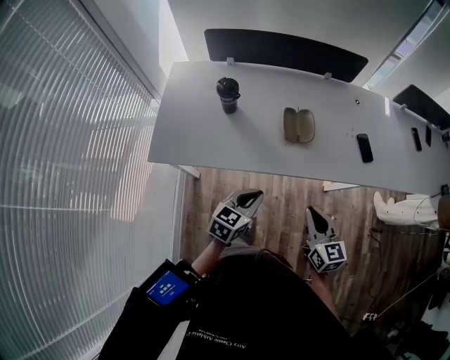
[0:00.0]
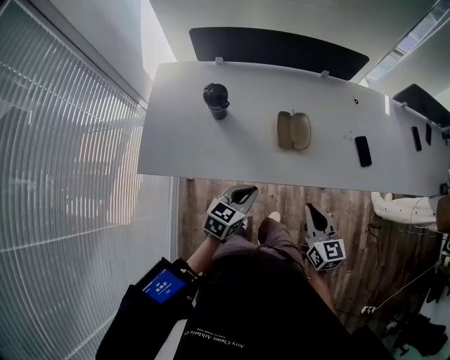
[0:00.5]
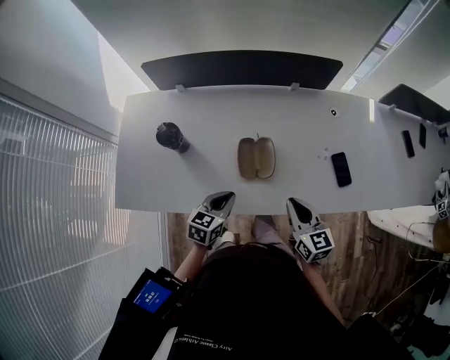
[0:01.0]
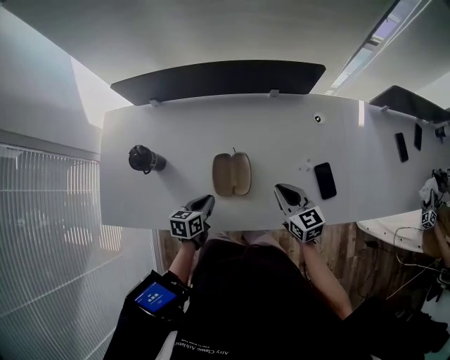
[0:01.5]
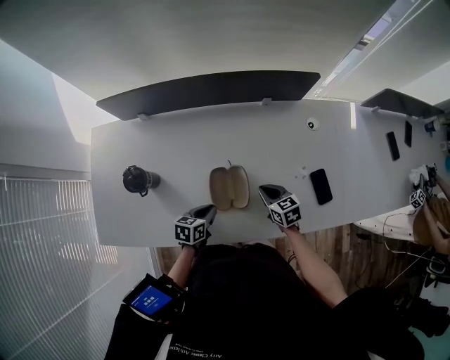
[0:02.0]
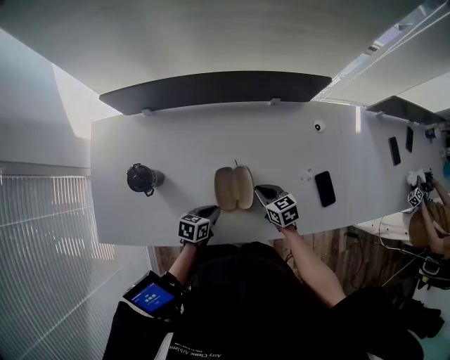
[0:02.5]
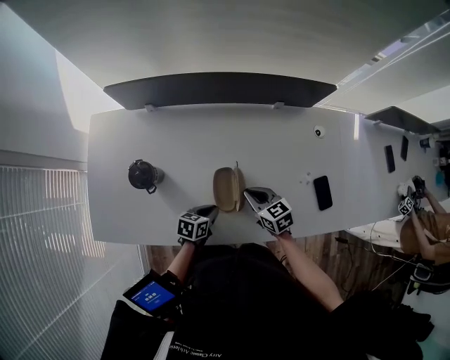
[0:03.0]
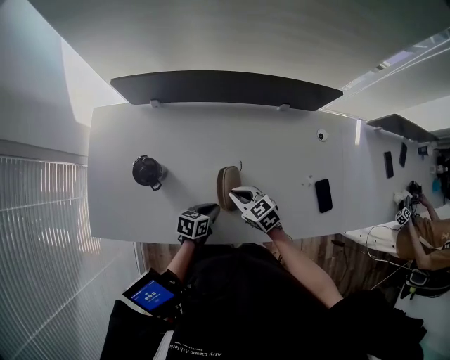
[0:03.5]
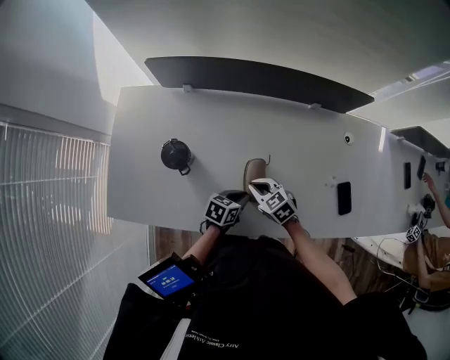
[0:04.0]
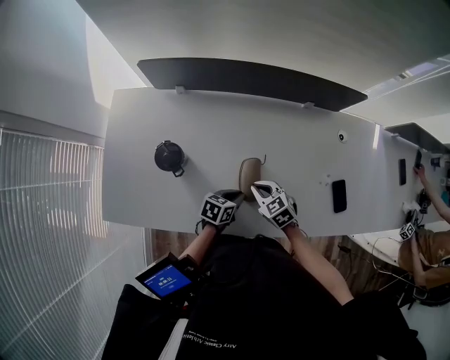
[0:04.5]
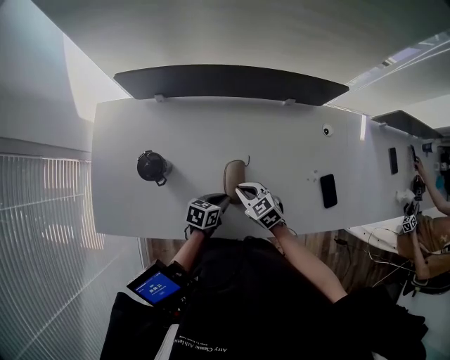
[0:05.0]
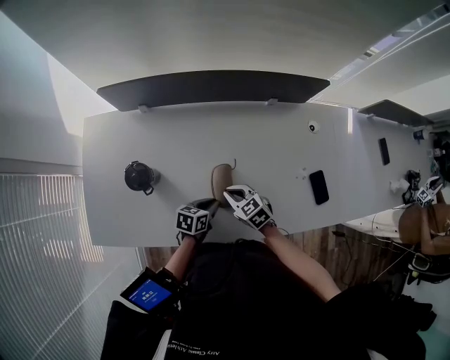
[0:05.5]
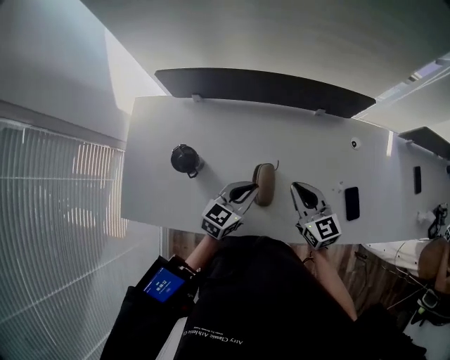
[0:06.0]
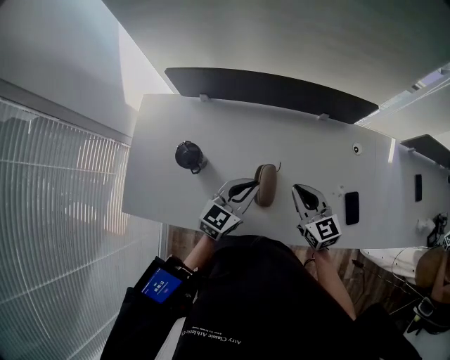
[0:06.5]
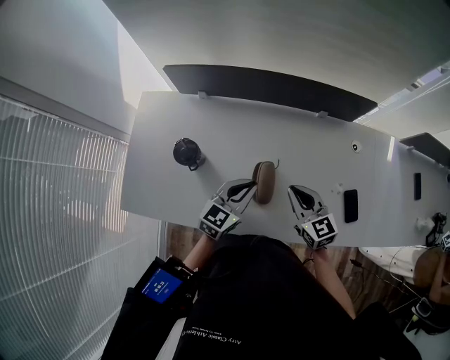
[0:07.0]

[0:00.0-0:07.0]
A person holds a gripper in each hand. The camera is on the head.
0:00.0 to 0:02.0: Both grippers move forward and downward, about 35 cm. The left gripper swivels about 30 degrees. Meanwhile the right gripper changes its angle by roughly 30 degrees.
0:02.0 to 0:03.5: The right gripper goes some 15 cm to the left, and swivels about 20 degrees.
0:03.5 to 0:05.0: There are only small adjustments of the grippers.
0:05.0 to 0:07.0: The right gripper shifts roughly 15 cm upward and to the right, and changes its angle by some 30 degrees; the left gripper goes about 20 cm upward, and changes its angle by about 40 degrees.

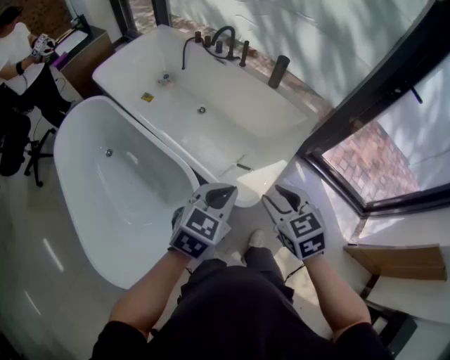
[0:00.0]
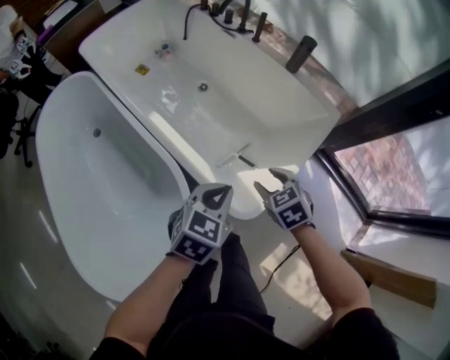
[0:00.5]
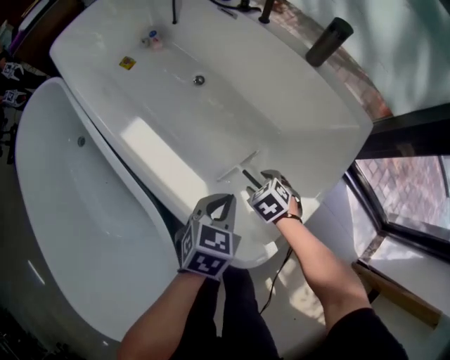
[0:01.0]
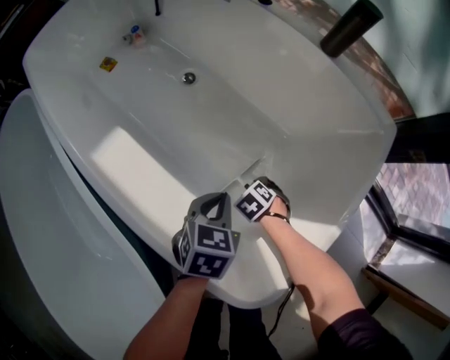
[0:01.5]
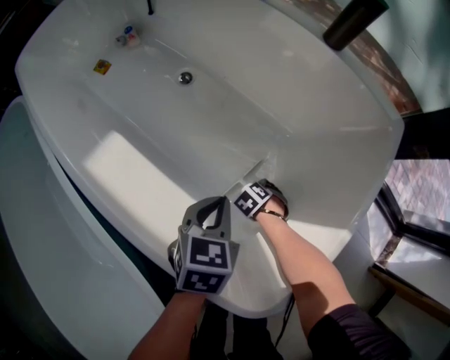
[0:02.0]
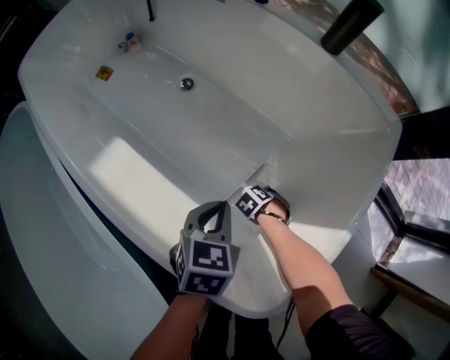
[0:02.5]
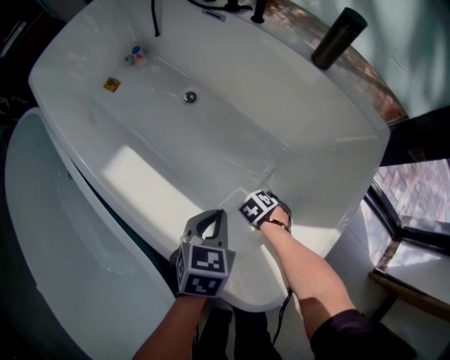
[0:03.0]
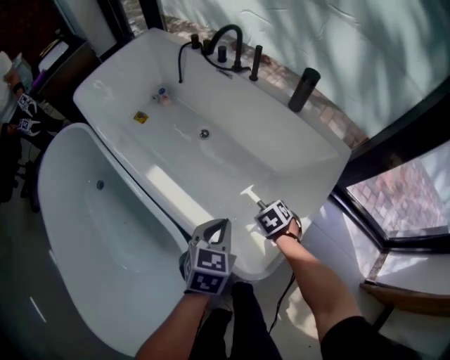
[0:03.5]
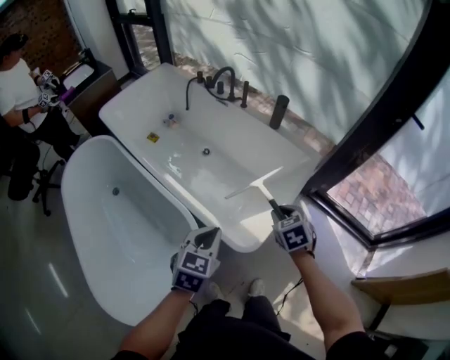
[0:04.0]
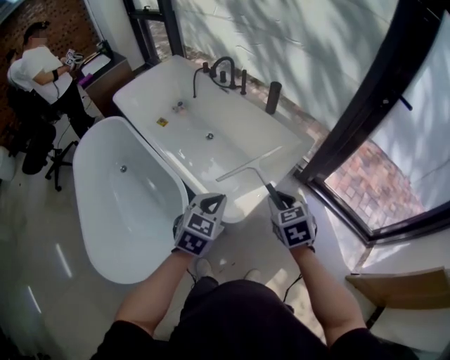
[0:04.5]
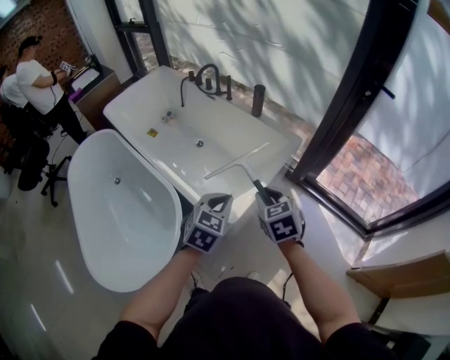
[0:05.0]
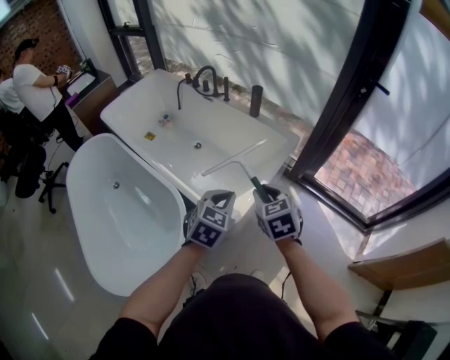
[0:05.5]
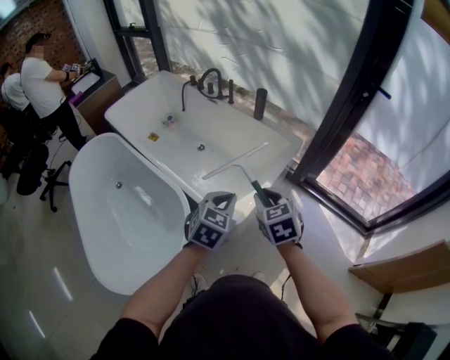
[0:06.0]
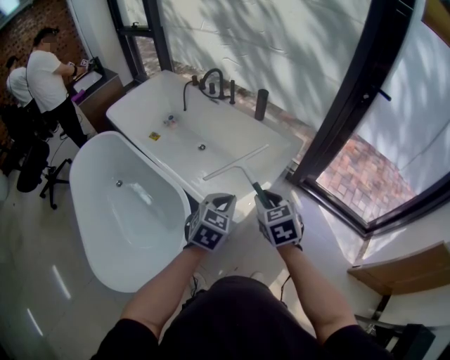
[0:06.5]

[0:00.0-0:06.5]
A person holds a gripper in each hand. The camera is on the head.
0:00.0 to 0:02.0: The right gripper is displaced downward by approximately 70 cm, and points its fingers about 40 degrees further downward, while the left gripper travels downward by roughly 40 cm, and swivels about 30 degrees.
0:02.0 to 0:04.5: The right gripper travels upward by some 70 cm, points its fingers approximately 40 degrees further upward, and closes. Meanwhile the left gripper is displaced upward by roughly 40 cm, and rotates some 30 degrees.
0:04.5 to 0:06.5: The right gripper moves about 5 cm.

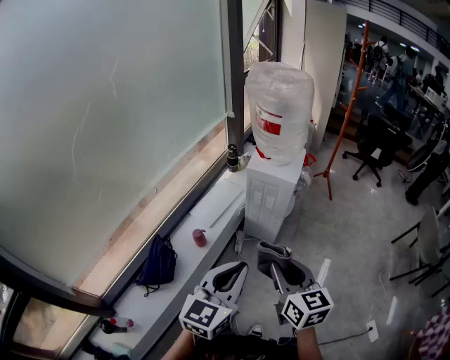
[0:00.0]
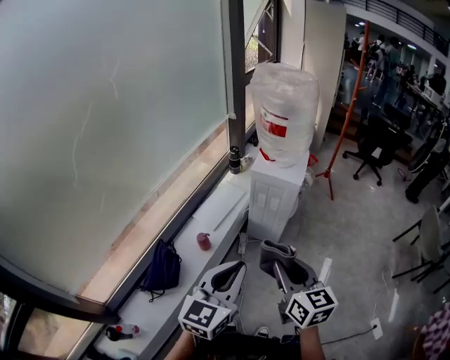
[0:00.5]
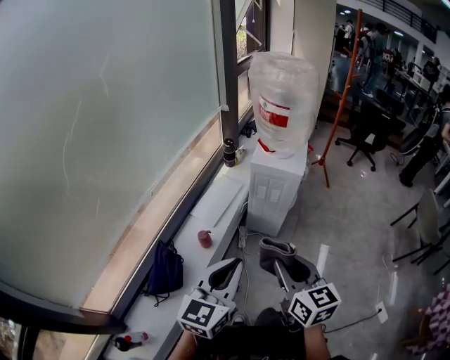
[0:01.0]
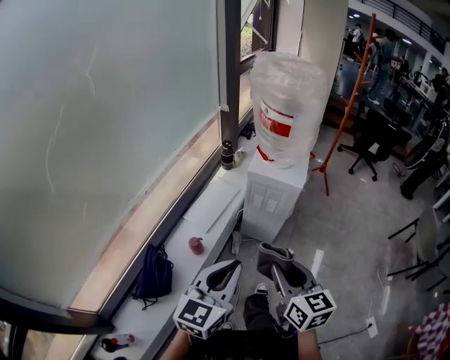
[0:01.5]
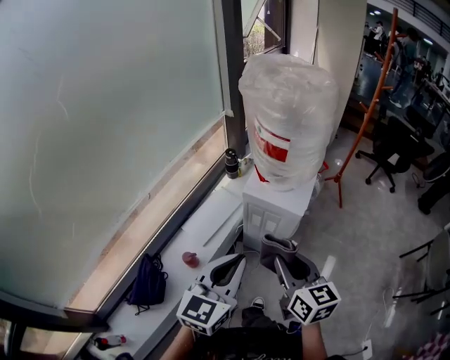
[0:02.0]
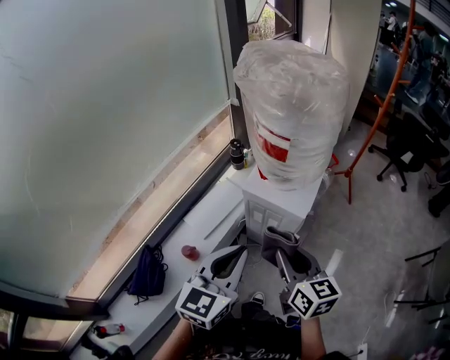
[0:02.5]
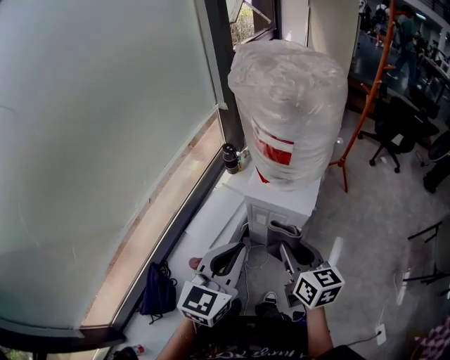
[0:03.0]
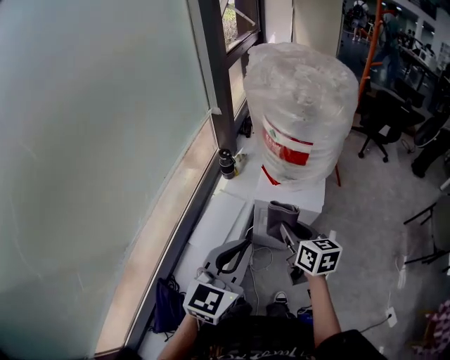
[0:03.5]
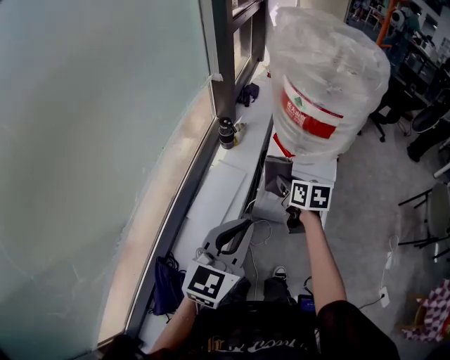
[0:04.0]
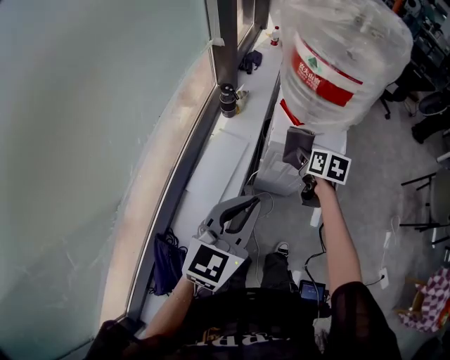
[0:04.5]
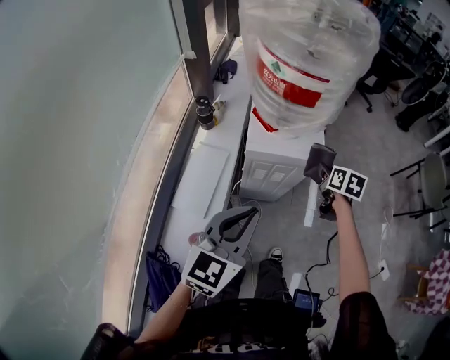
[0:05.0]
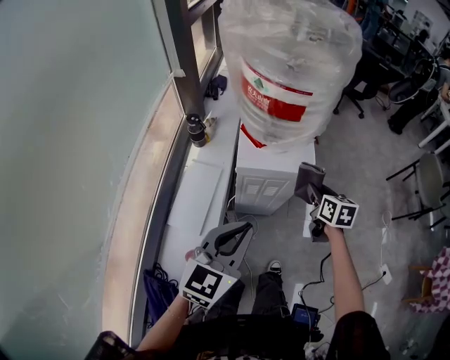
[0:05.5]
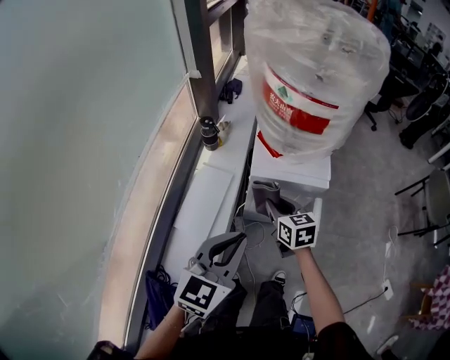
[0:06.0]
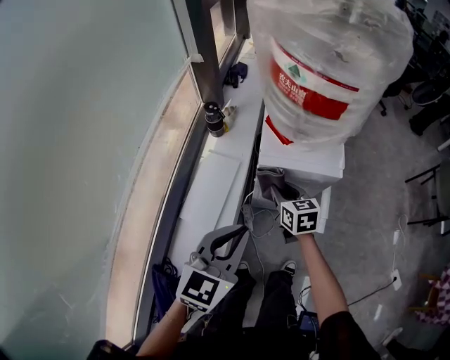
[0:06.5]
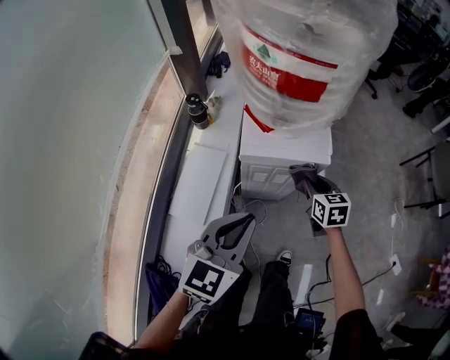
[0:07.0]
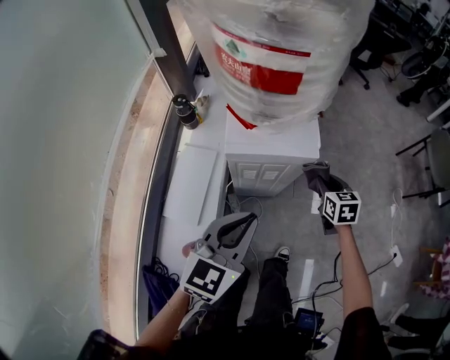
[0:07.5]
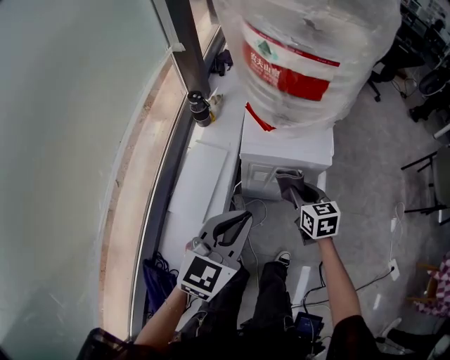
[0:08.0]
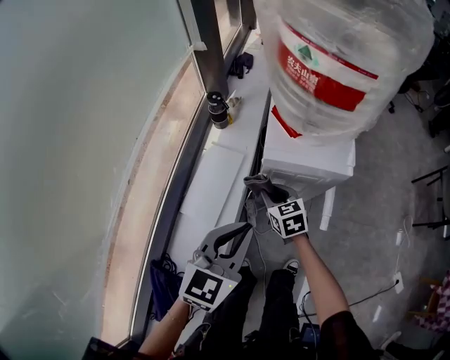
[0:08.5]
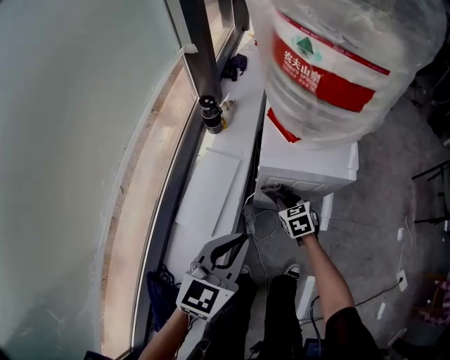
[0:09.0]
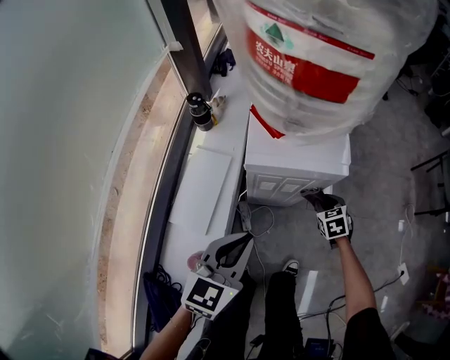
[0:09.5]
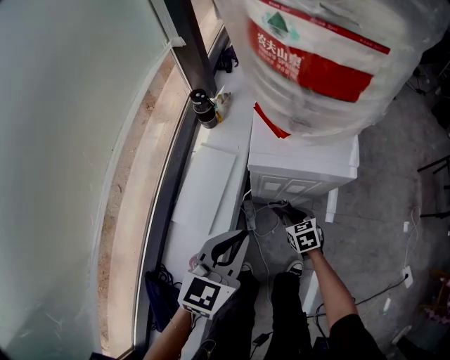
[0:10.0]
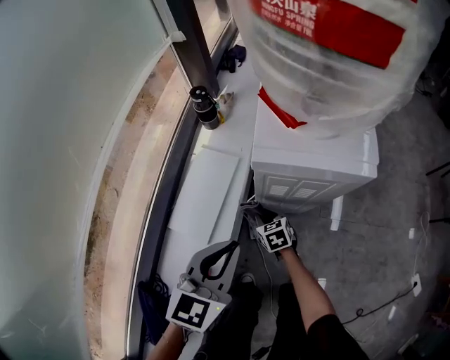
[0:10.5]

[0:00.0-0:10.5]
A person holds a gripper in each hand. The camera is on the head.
0:00.0 to 0:02.0: The two grippers go roughly 25 cm forward.
0:02.0 to 0:04.0: The left gripper heads to the left and forward, covering roughly 20 cm; the right gripper travels forward, downward and to the left by some 30 cm, and changes its angle by about 30 degrees.
0:04.0 to 0:06.5: The grippers both shift downward by about 10 cm. The right gripper goes to the right and returns, some 20 cm each way.
0:06.5 to 0:08.5: The left gripper travels to the right and back again, approximately 10 cm each way; the right gripper moves downward, some 5 cm, and travels to the right and back again, roughly 25 cm each way.
0:08.5 to 0:10.5: The left gripper moves downward, about 10 cm. Meanwhile the right gripper moves downward, about 25 cm, and reaches some 25 cm to the right, then returns.

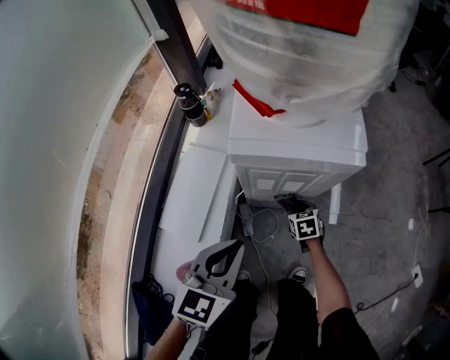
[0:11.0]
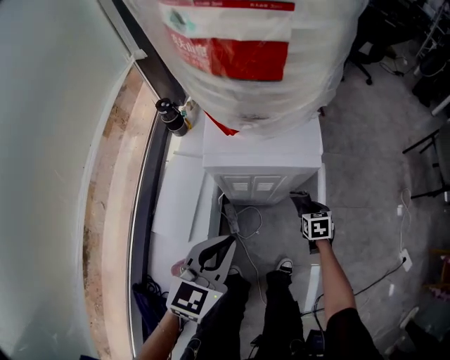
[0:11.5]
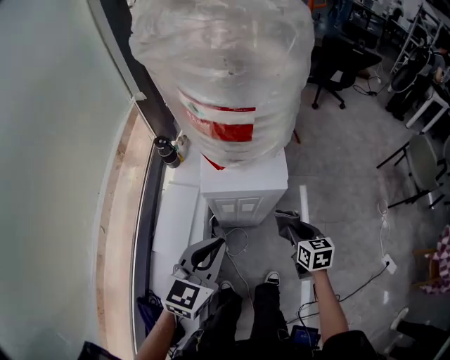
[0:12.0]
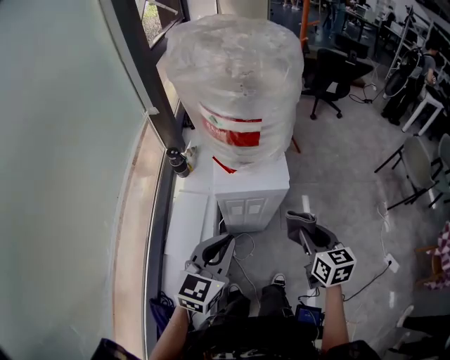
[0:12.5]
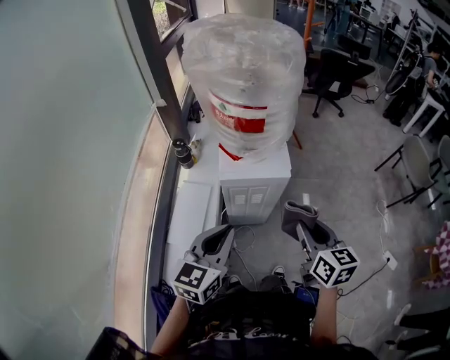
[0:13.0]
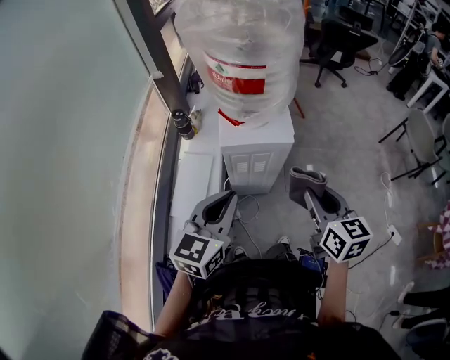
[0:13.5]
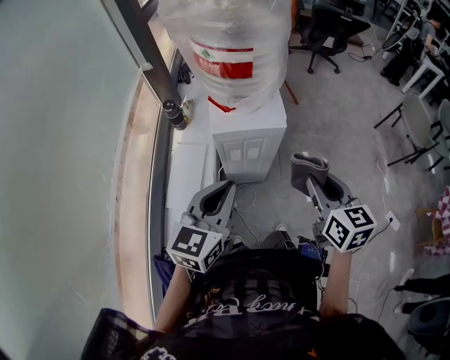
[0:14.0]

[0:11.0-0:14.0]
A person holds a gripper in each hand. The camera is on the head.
0:11.0 to 0:12.5: The right gripper shifts some 50 cm upward, and rotates about 30 degrees; the left gripper moves upward, approximately 25 cm.
0:12.5 to 0:14.0: The left gripper ends up some 5 cm from where it was. The right gripper shifts some 10 cm upward and backward.
